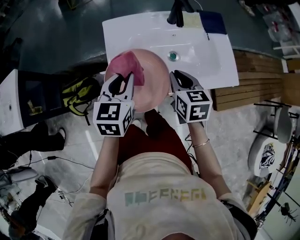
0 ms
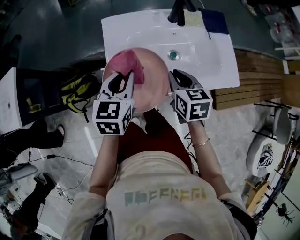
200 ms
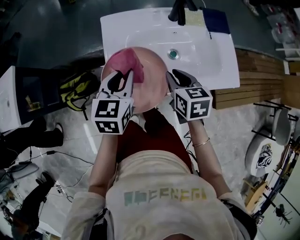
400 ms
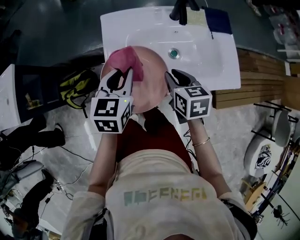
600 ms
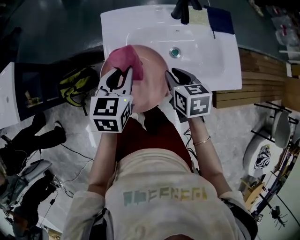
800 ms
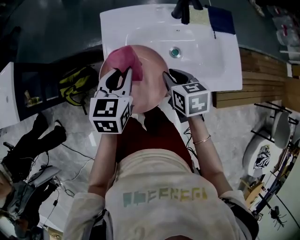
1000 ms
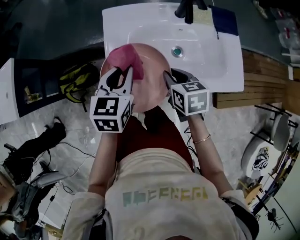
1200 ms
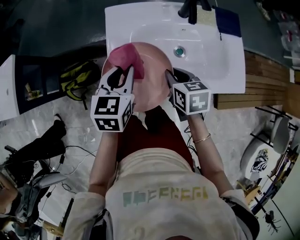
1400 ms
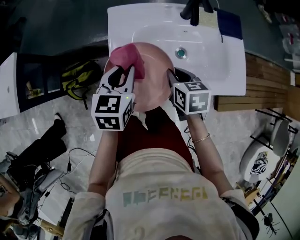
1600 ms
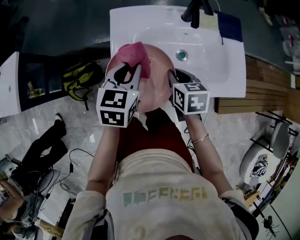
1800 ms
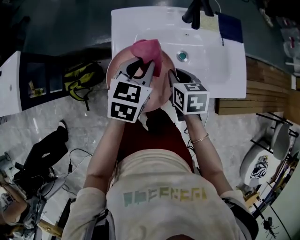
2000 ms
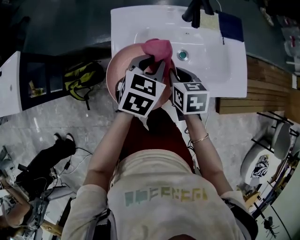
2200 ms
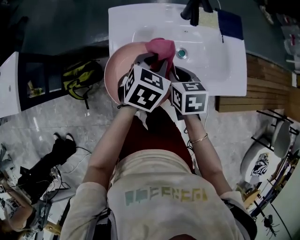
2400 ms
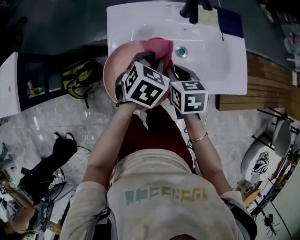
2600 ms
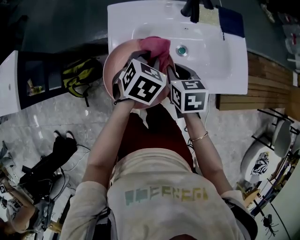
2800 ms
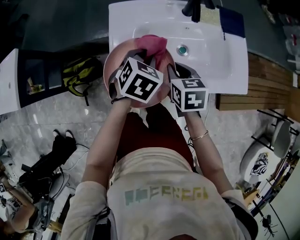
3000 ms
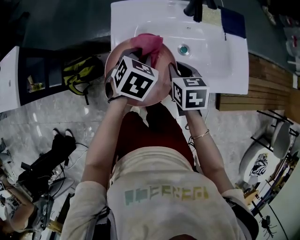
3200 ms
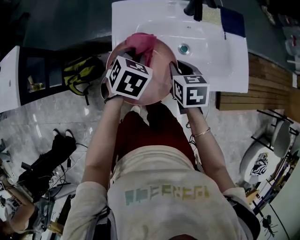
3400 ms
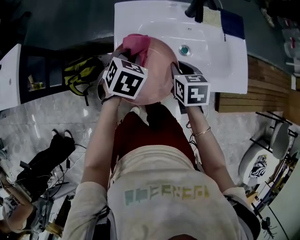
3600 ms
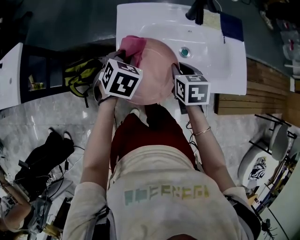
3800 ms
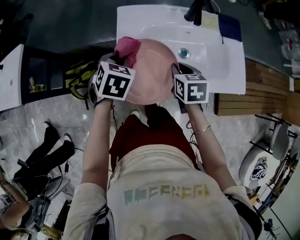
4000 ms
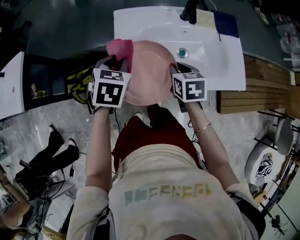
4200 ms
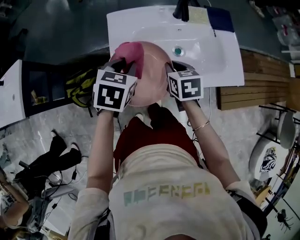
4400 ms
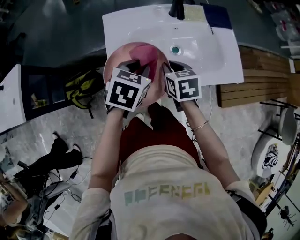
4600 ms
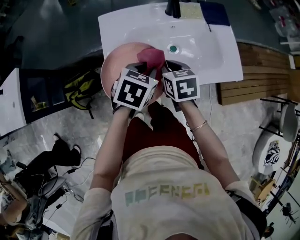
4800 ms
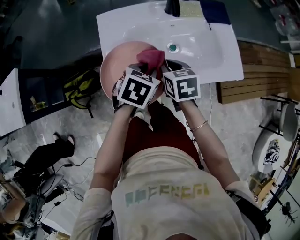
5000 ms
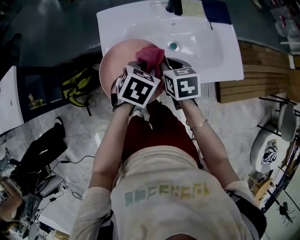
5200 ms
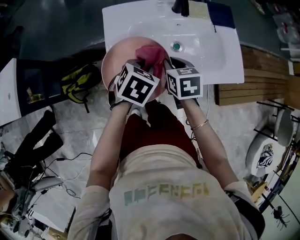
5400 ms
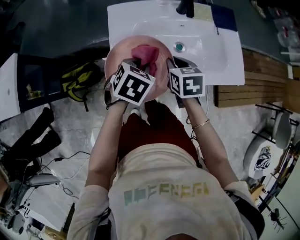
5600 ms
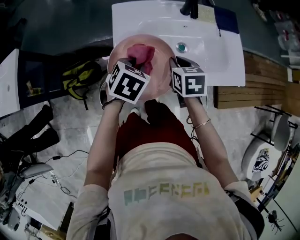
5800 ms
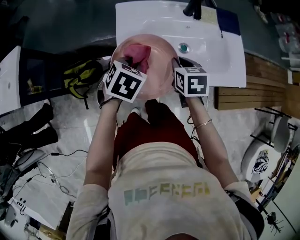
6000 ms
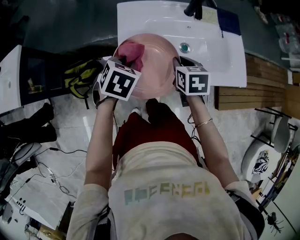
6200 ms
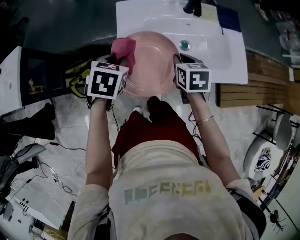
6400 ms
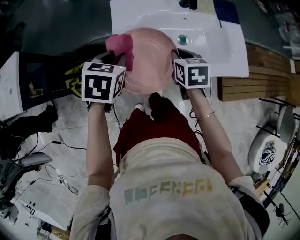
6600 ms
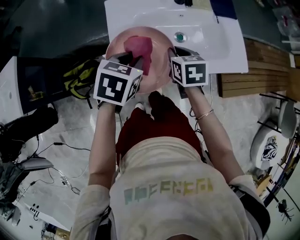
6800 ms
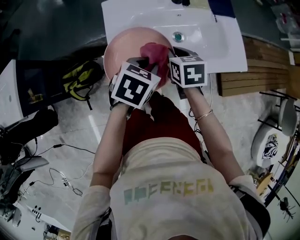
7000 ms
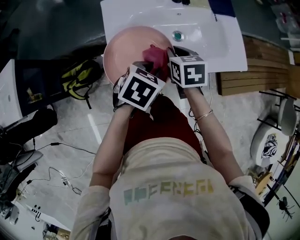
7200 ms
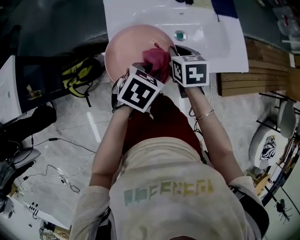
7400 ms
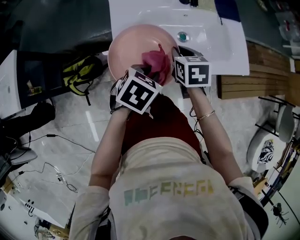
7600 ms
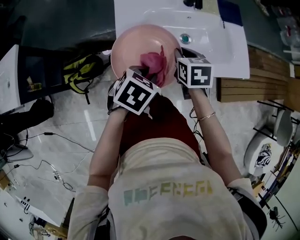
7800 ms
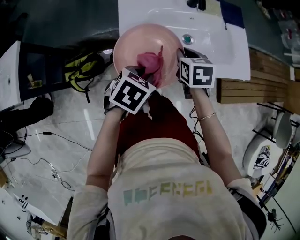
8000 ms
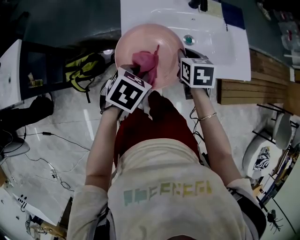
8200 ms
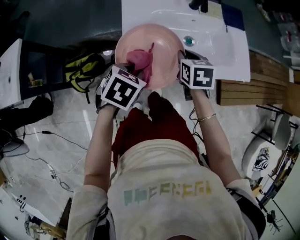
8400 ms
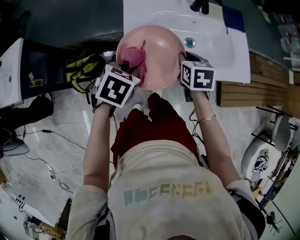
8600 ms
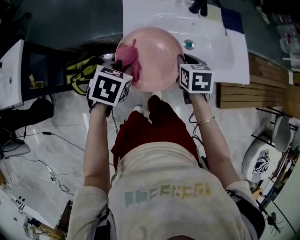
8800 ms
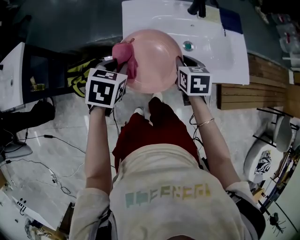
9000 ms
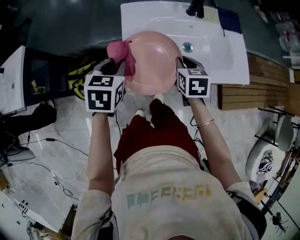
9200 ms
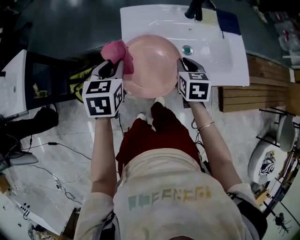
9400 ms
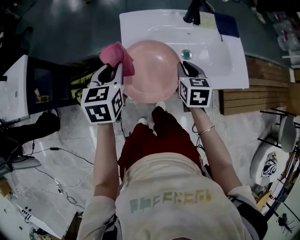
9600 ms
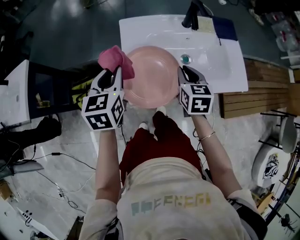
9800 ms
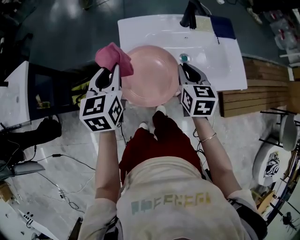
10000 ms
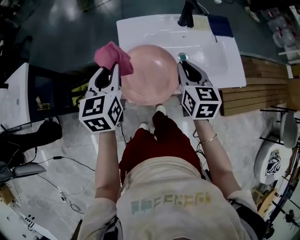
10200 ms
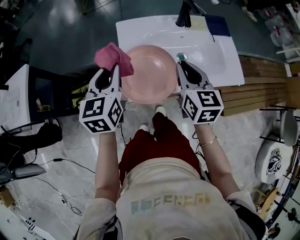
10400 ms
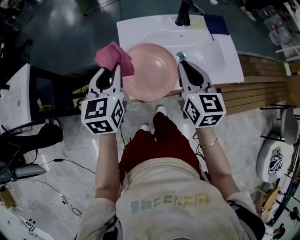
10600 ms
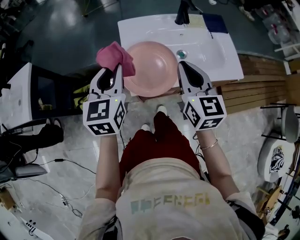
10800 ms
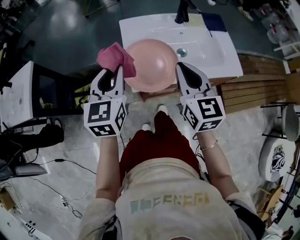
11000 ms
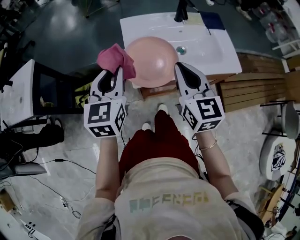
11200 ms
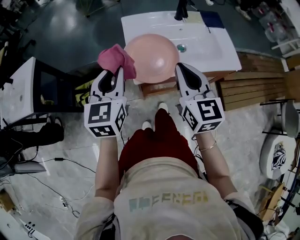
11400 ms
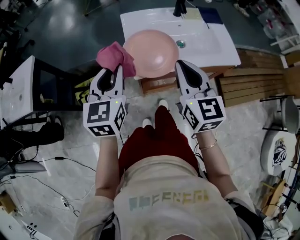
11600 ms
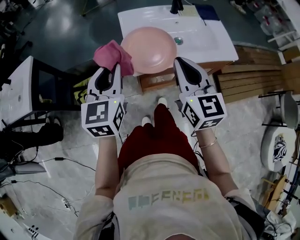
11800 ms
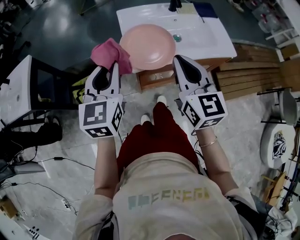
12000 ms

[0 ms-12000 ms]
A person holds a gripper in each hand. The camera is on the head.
0 ms to 1600 ms: The right gripper shifts about 5 cm downward.
1600 ms to 3000 ms: The left gripper travels to the right by approximately 5 cm, and rotates about 30 degrees.
3000 ms to 4400 ms: The left gripper goes roughly 10 cm to the left and upward.
4400 ms to 6000 ms: The left gripper heads downward, covering roughly 5 cm, and reaches roughly 10 cm to the right, then returns.
6000 ms to 7600 ms: The left gripper heads to the right and backward, covering about 10 cm.
7600 ms to 9000 ms: The left gripper goes roughly 15 cm to the left, and rotates roughly 20 degrees.
9000 ms to 10400 ms: The two grippers go roughly 10 cm upward. The left gripper angles its fingers upward, by about 30 degrees. The right gripper rotates approximately 30 degrees.
10400 ms to 12000 ms: The right gripper moves backward and upward, roughly 20 cm. The left gripper shifts roughly 15 cm backward.

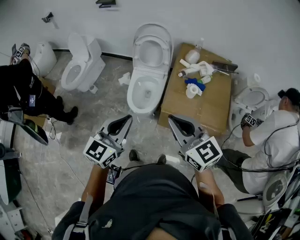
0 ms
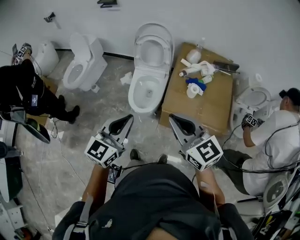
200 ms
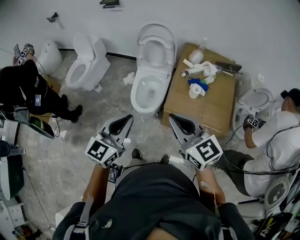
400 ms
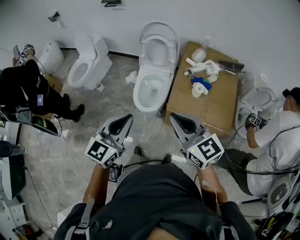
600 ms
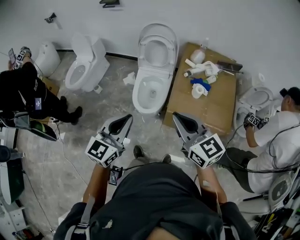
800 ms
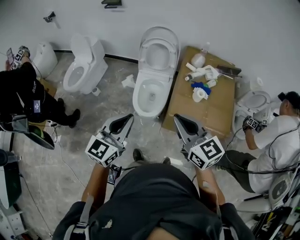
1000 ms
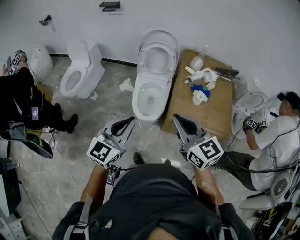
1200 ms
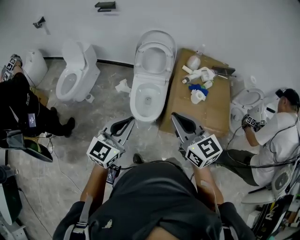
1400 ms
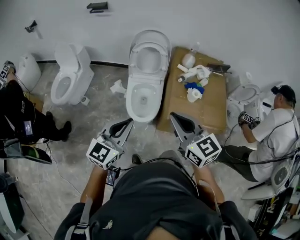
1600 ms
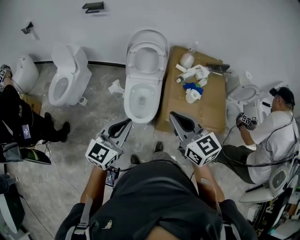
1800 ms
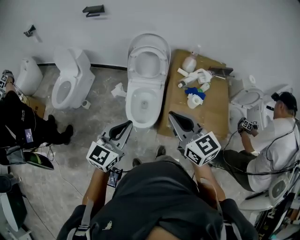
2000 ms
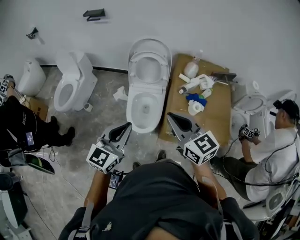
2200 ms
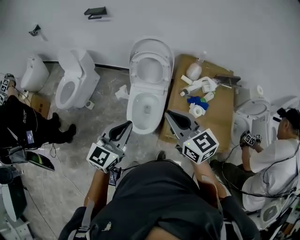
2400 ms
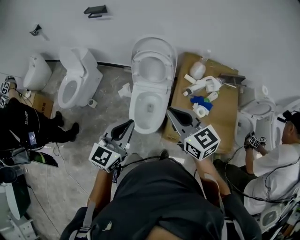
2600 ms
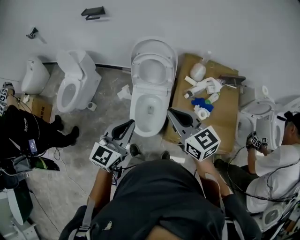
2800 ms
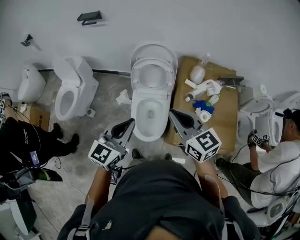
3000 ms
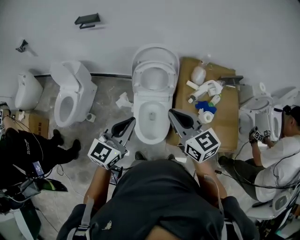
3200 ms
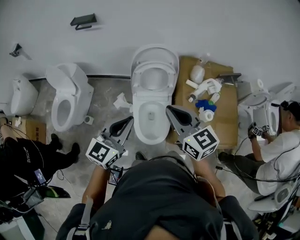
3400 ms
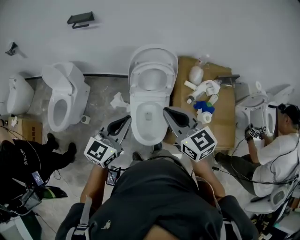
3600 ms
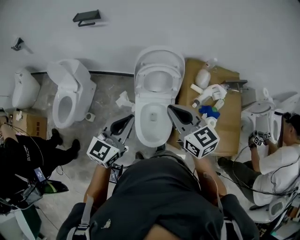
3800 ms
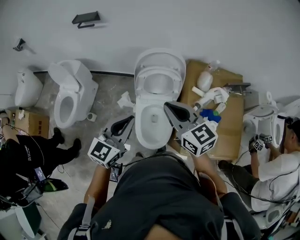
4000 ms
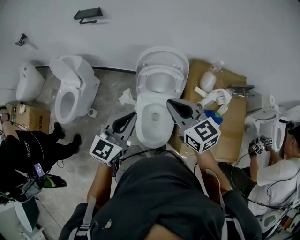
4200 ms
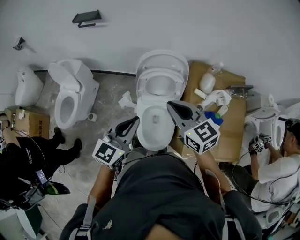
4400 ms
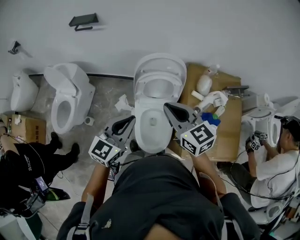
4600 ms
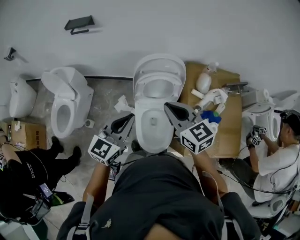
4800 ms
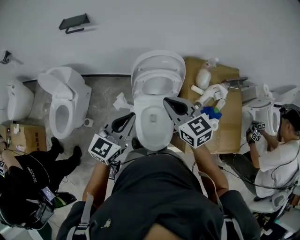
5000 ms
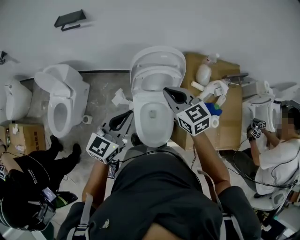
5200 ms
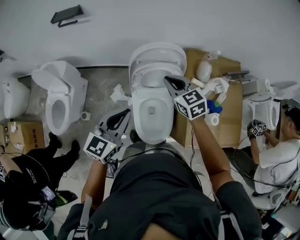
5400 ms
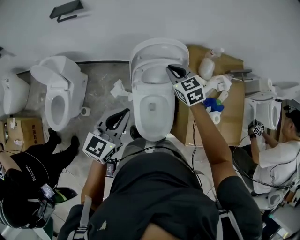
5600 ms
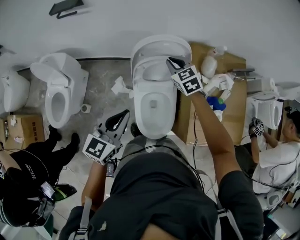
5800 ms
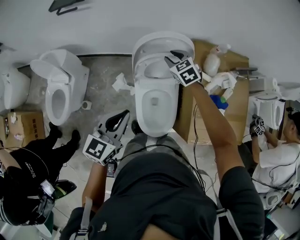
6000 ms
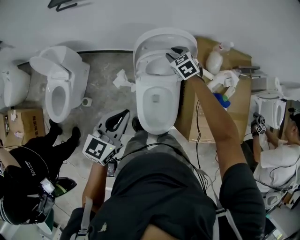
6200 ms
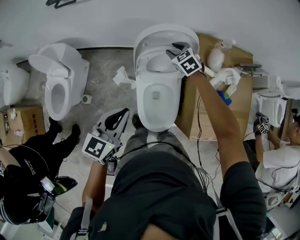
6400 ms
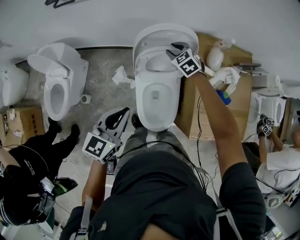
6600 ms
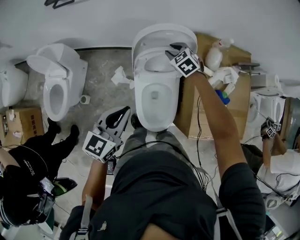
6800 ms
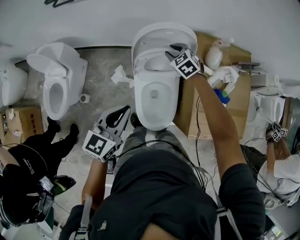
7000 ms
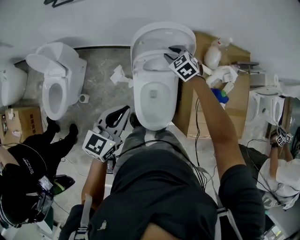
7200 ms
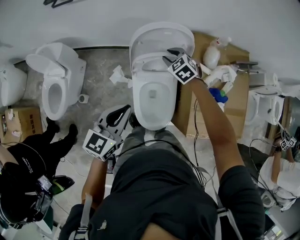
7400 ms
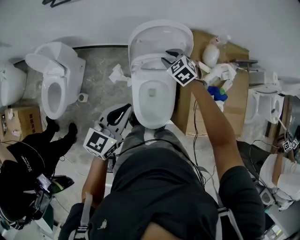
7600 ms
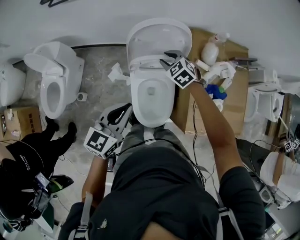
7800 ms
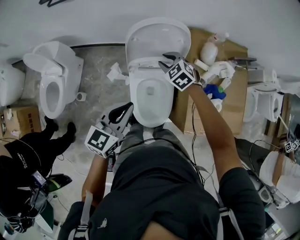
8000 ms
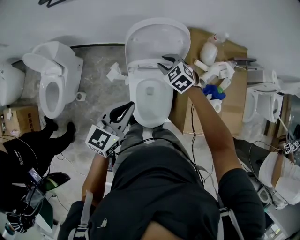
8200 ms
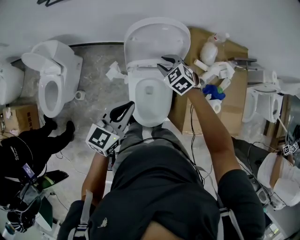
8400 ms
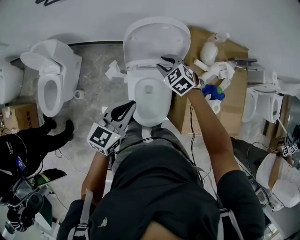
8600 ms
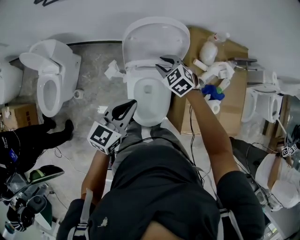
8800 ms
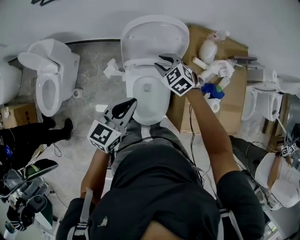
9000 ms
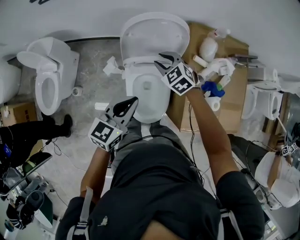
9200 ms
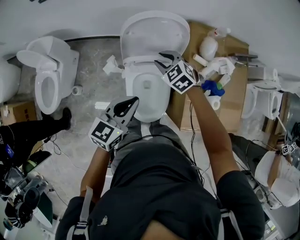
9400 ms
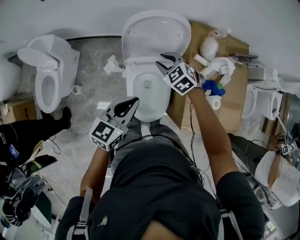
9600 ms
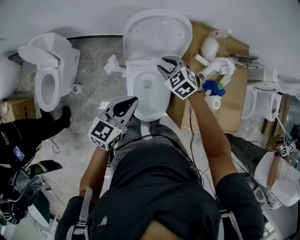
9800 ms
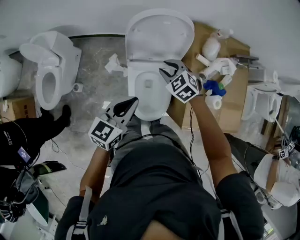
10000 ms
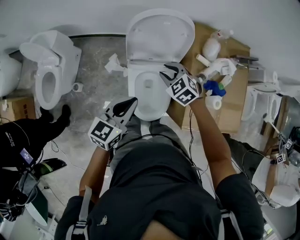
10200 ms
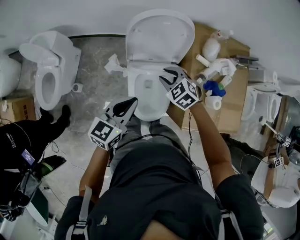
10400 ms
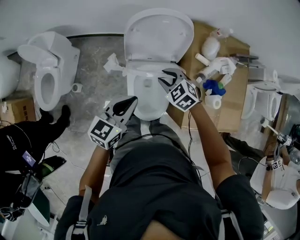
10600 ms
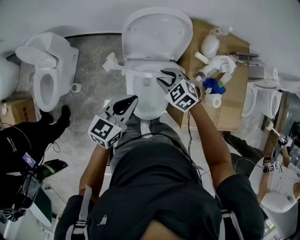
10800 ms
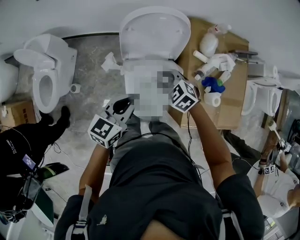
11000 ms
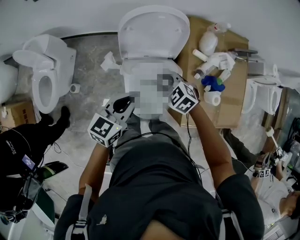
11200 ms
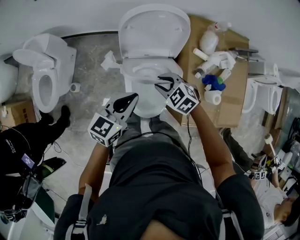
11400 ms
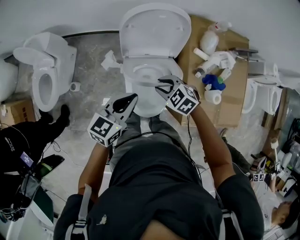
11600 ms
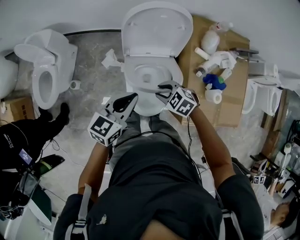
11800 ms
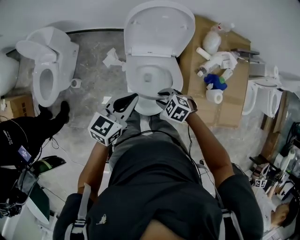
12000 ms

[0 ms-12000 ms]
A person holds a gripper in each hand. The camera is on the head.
0 ms to 1600 ms: Both grippers travel together to the left and forward, about 15 cm.
1600 ms to 3000 ms: Both grippers travel together forward, approximately 20 cm.
3000 ms to 4400 ms: The right gripper heads forward and to the left, covering roughly 20 cm; the left gripper goes approximately 15 cm forward.
4400 ms to 6000 ms: The left gripper heads to the left and downward, covering some 10 cm. The right gripper goes roughly 30 cm forward and downward, turns by approximately 30 degrees, and opens its fingers.
6000 ms to 7600 ms: The right gripper shifts by some 5 cm.
7600 ms to 9000 ms: The left gripper moves to the right, approximately 5 cm.
9000 ms to 10400 ms: The right gripper heads backward, covering approximately 10 cm.
10400 ms to 12000 ms: The right gripper shifts by about 15 cm, and rotates approximately 20 degrees.
